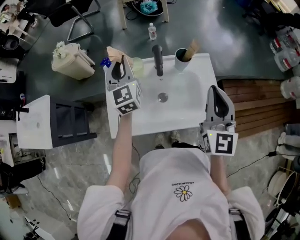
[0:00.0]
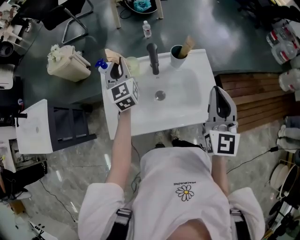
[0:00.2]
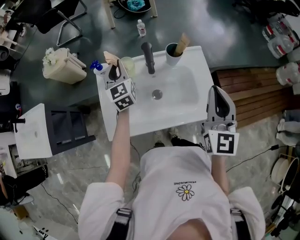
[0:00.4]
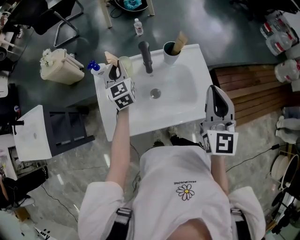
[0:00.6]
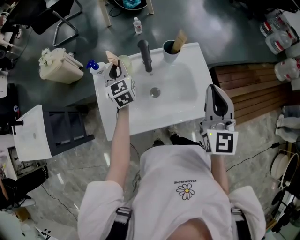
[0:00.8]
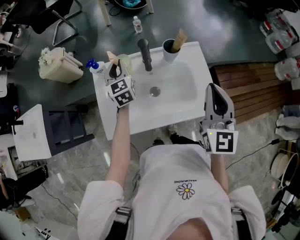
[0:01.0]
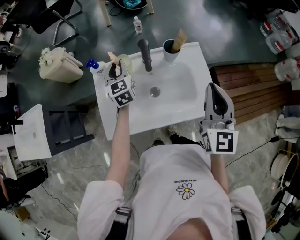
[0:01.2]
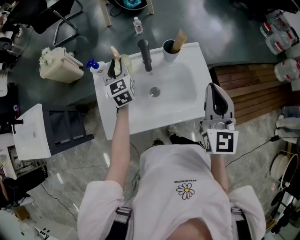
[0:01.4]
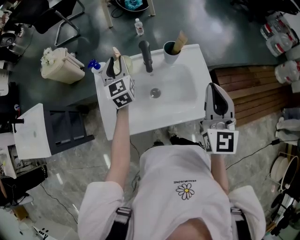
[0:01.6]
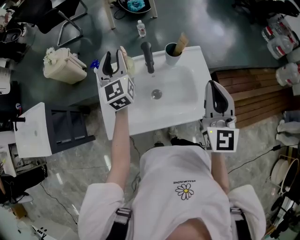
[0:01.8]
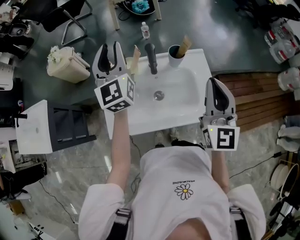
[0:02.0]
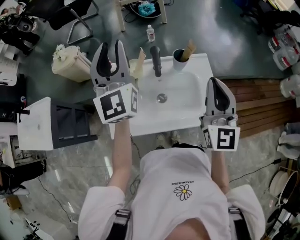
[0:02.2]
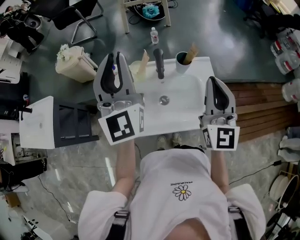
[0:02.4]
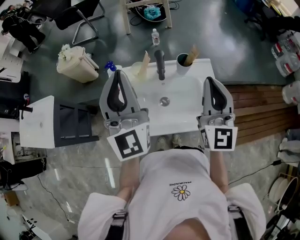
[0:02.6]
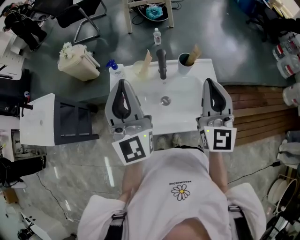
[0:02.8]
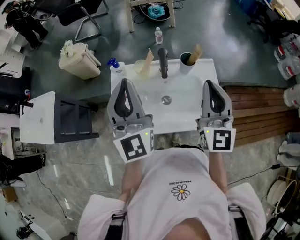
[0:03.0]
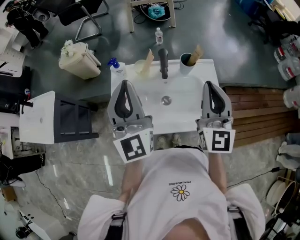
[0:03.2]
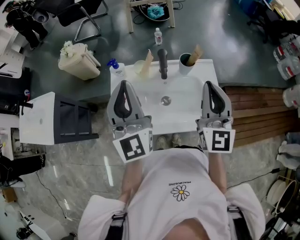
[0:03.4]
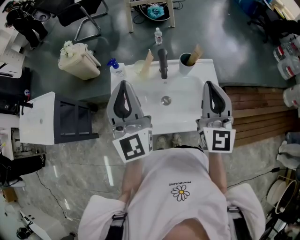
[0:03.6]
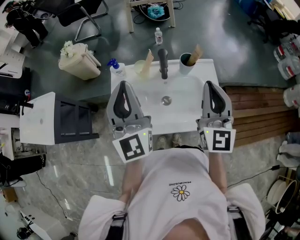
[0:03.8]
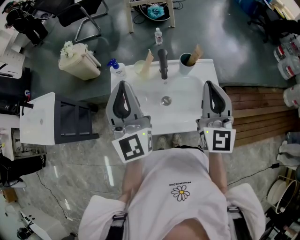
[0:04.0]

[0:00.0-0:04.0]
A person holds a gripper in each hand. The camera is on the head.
0:00.0 to 0:01.4: The left gripper heads downward, covering about 10 cm.
0:01.4 to 0:02.6: The right gripper travels upward by approximately 5 cm; the left gripper shifts some 30 cm upward and backward, angles its fingers upward, by approximately 30 degrees, and closes.
0:02.6 to 0:04.0: The grippers make only small movements.

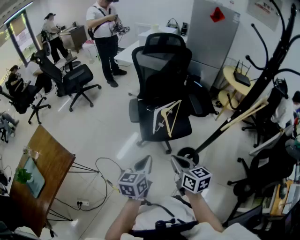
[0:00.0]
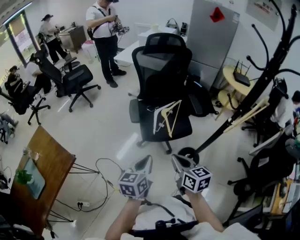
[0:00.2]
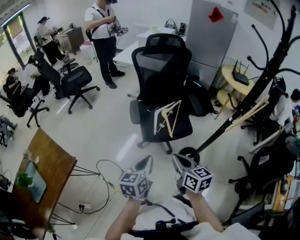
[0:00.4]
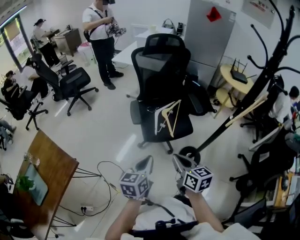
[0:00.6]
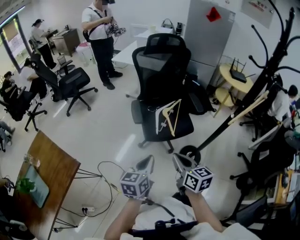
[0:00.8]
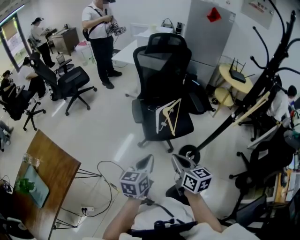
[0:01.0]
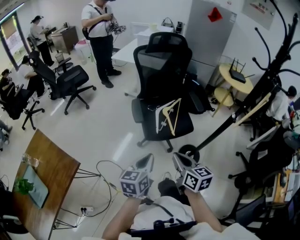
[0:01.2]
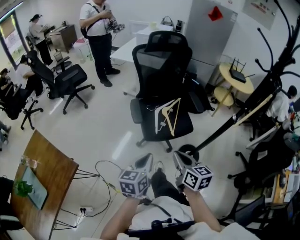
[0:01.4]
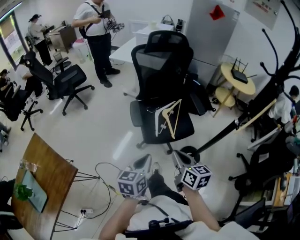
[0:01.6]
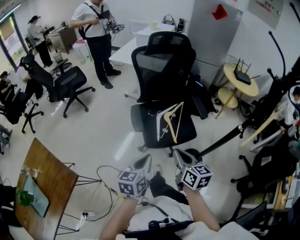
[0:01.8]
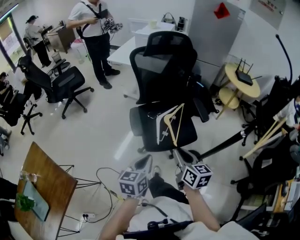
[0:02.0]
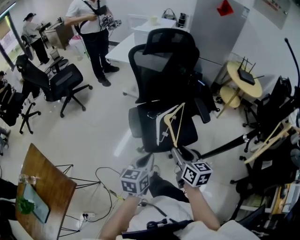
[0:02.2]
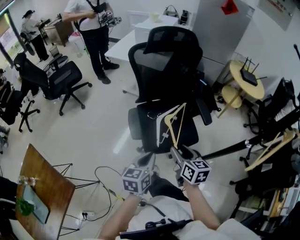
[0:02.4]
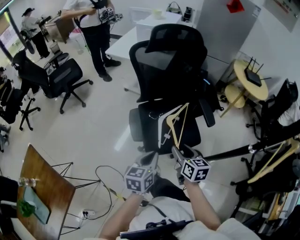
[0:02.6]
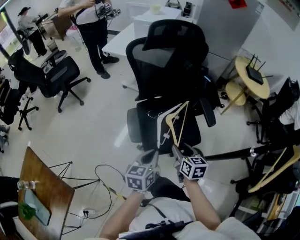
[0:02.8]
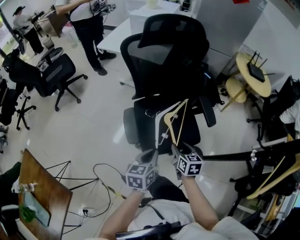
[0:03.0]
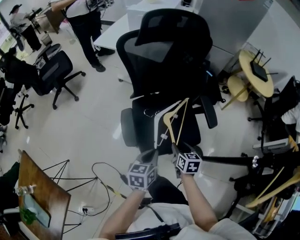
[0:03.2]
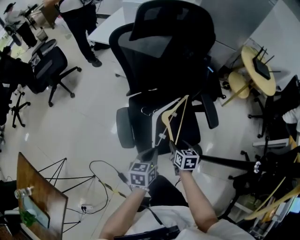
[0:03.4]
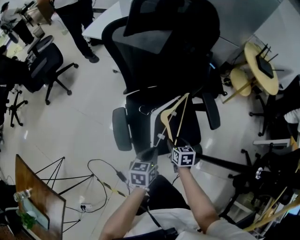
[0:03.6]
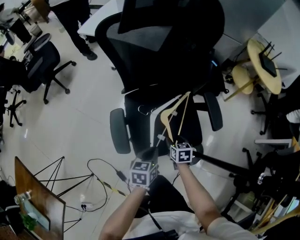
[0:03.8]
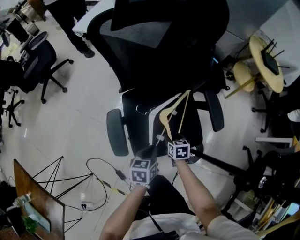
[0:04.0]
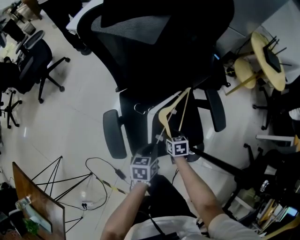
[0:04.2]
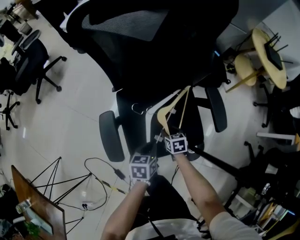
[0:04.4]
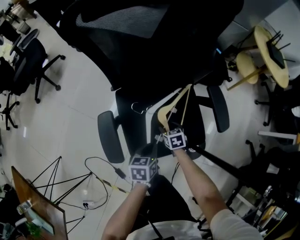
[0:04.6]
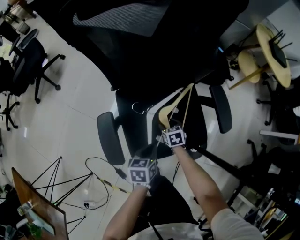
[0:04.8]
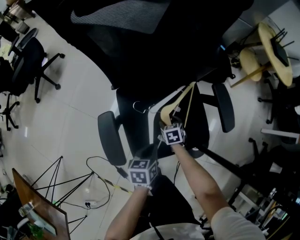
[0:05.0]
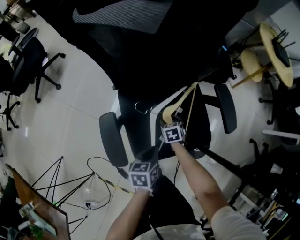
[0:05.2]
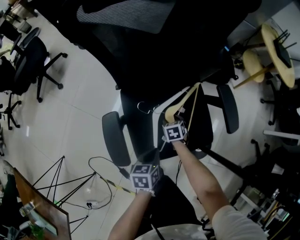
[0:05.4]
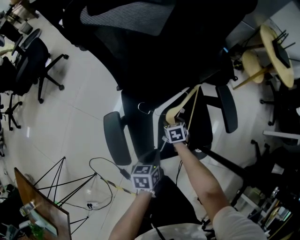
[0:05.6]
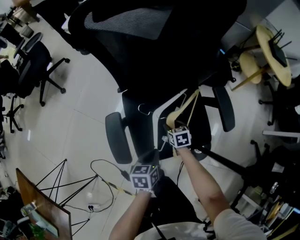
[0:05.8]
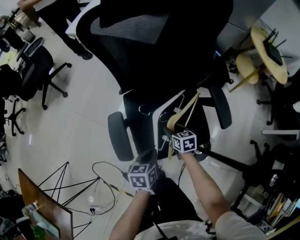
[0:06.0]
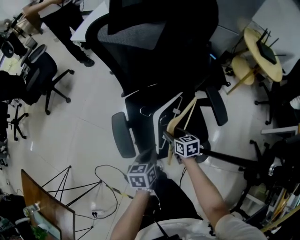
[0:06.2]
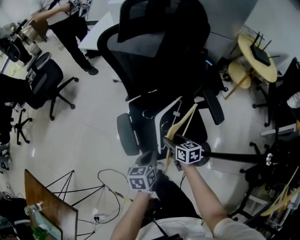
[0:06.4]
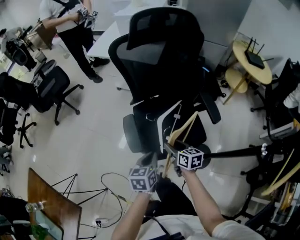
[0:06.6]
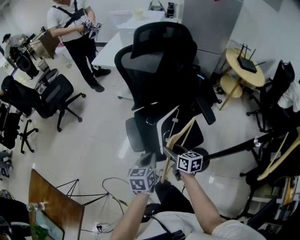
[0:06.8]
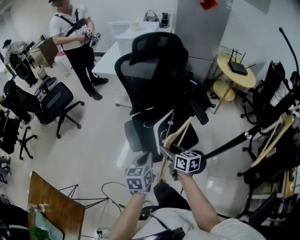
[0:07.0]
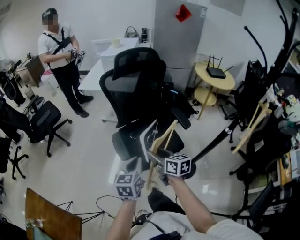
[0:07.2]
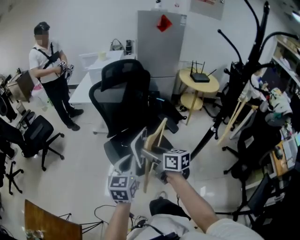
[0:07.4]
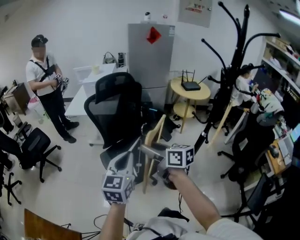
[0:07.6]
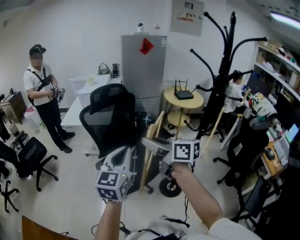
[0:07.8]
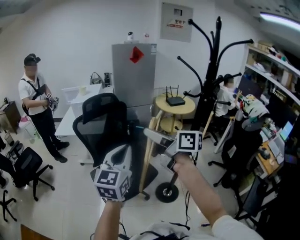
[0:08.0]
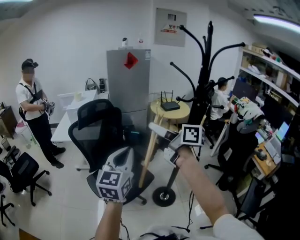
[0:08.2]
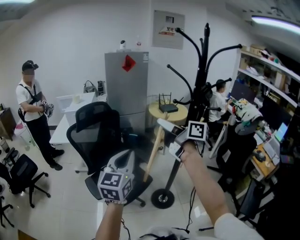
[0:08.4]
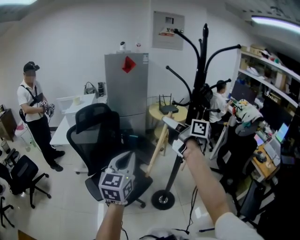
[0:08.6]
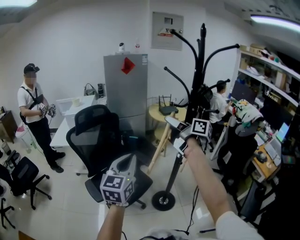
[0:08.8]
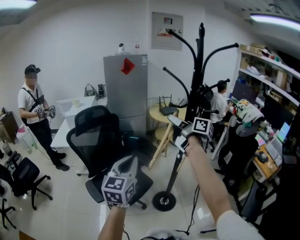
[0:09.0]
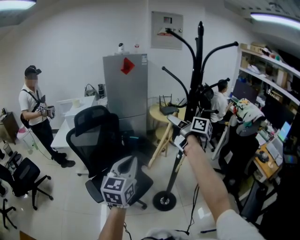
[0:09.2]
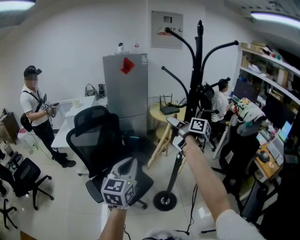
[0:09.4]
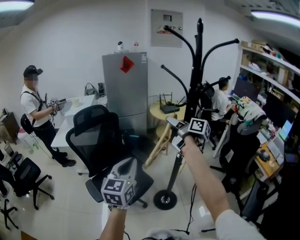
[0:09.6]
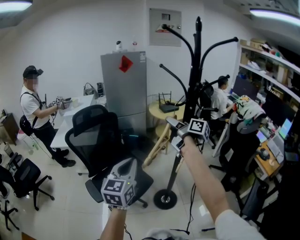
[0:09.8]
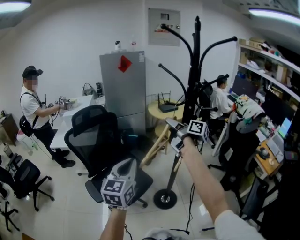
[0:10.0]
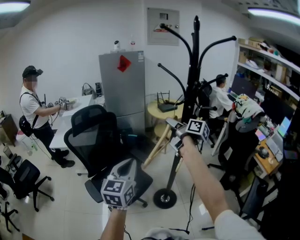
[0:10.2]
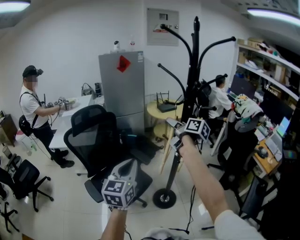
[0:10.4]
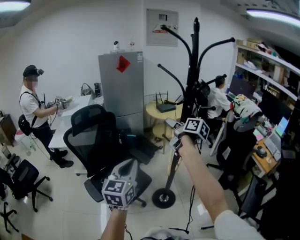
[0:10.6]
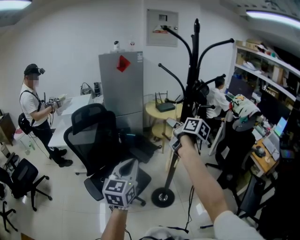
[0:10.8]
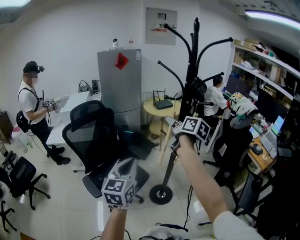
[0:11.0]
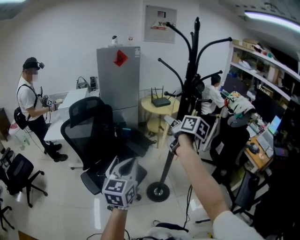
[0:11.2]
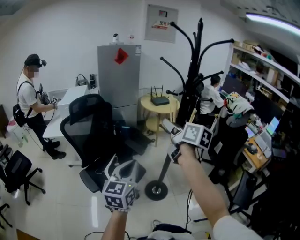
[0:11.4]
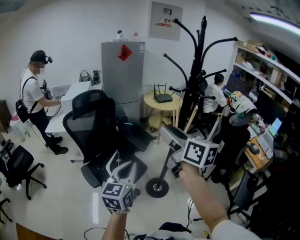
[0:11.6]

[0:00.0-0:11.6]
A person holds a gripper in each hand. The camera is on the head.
0:00.0 to 0:01.4: The grippers both shift to the left by approximately 5 cm.
0:01.4 to 0:02.8: The right gripper heads forward and downward, covering some 30 cm, and opens up, while the left gripper shifts roughly 25 cm forward.
0:02.8 to 0:04.4: The grippers both shift downward and forward by roughly 35 cm. The left gripper changes its angle by approximately 20 degrees. Meanwhile the right gripper swivels approximately 30 degrees.
0:05.8 to 0:07.2: The grippers both shift upward and backward by roughly 40 cm. The left gripper turns by approximately 30 degrees. Meanwhile the right gripper tips its fingers upward by some 40 degrees.
0:07.2 to 0:08.8: Both grippers travel together upward and to the right, roughly 40 cm. The left gripper turns by roughly 40 degrees. Meanwhile the right gripper turns by about 40 degrees.
0:08.8 to 0:10.2: The right gripper shifts roughly 5 cm downward.
0:10.2 to 0:11.6: The right gripper goes about 20 cm backward, and changes its angle by approximately 30 degrees. Meanwhile the left gripper shifts some 10 cm backward.

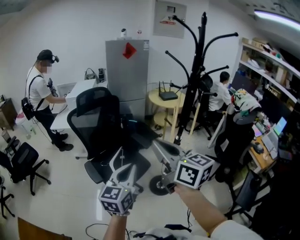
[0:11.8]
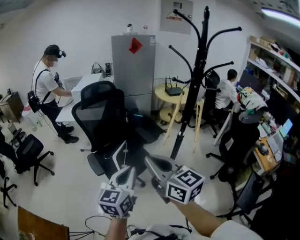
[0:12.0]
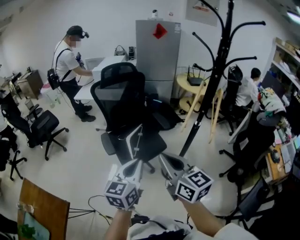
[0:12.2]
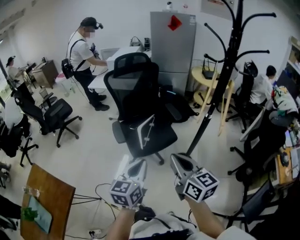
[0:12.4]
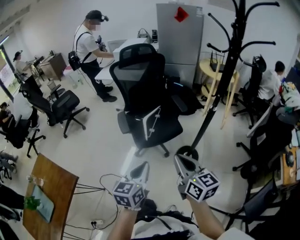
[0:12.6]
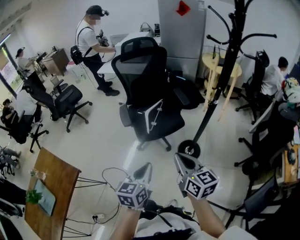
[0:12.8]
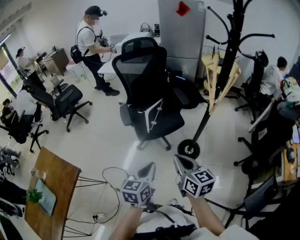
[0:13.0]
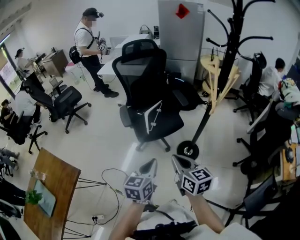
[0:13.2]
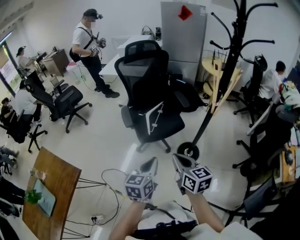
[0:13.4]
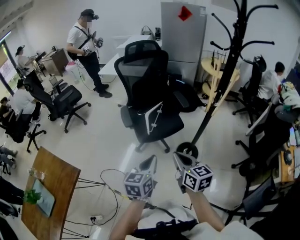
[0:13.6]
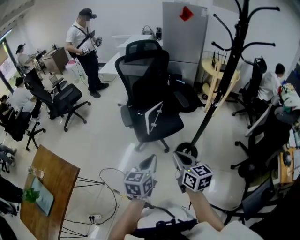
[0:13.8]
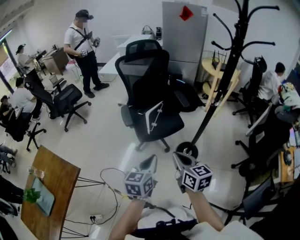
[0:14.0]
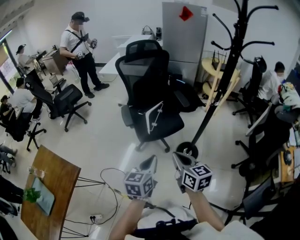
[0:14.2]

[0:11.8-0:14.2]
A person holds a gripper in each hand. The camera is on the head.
0:11.8 to 0:13.0: The right gripper is displaced downward and backward by approximately 30 cm, and swivels about 20 degrees, while the left gripper travels backward and downward by roughly 25 cm, and changes its angle by approximately 30 degrees.
0:13.0 to 0:14.2: The grippers stay close to where they were, moving slightly.

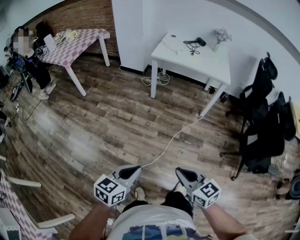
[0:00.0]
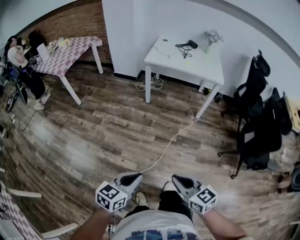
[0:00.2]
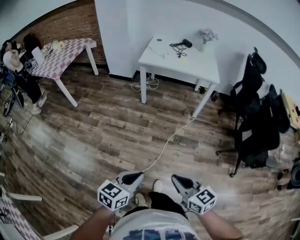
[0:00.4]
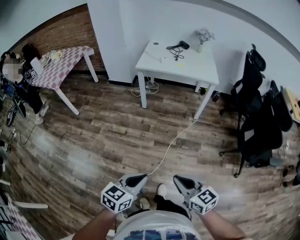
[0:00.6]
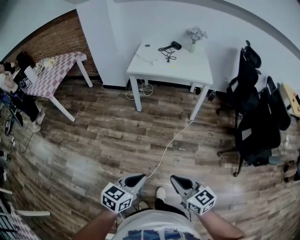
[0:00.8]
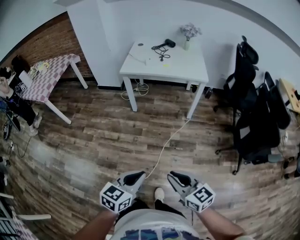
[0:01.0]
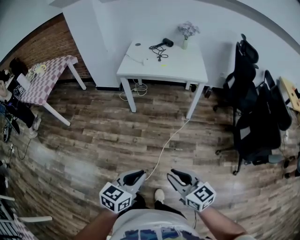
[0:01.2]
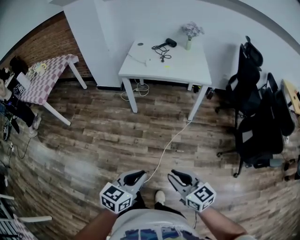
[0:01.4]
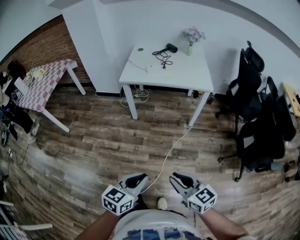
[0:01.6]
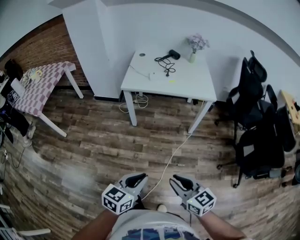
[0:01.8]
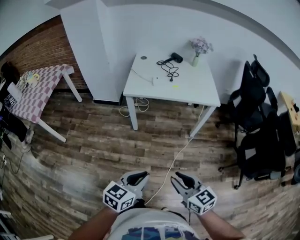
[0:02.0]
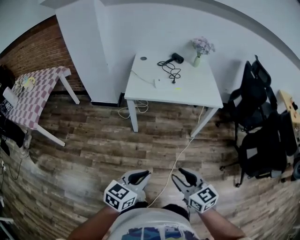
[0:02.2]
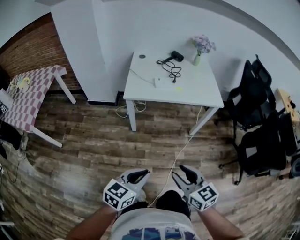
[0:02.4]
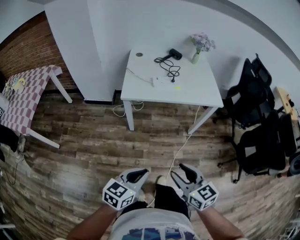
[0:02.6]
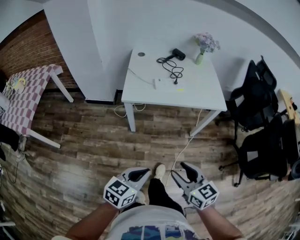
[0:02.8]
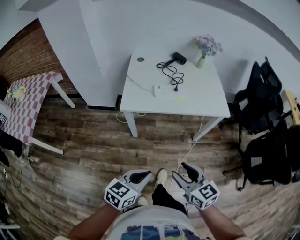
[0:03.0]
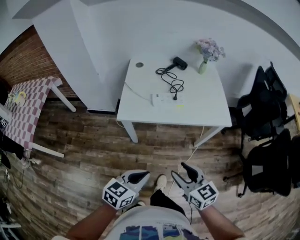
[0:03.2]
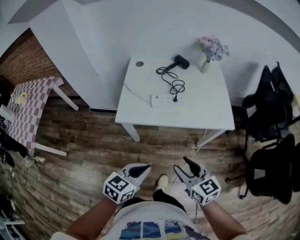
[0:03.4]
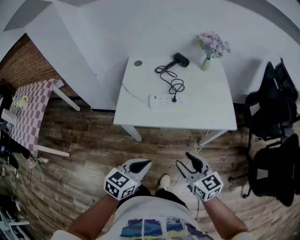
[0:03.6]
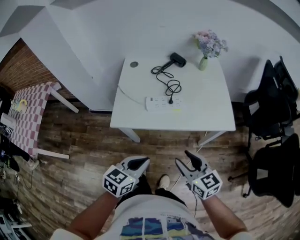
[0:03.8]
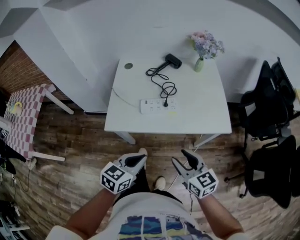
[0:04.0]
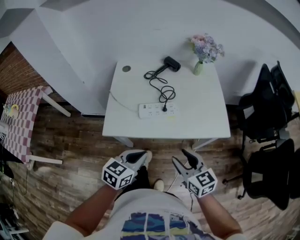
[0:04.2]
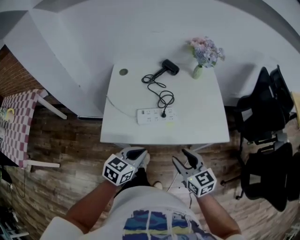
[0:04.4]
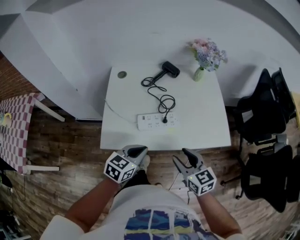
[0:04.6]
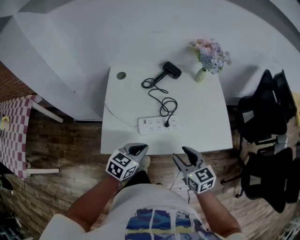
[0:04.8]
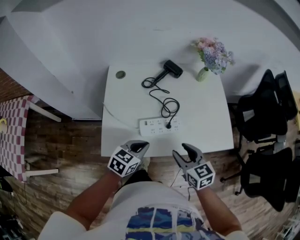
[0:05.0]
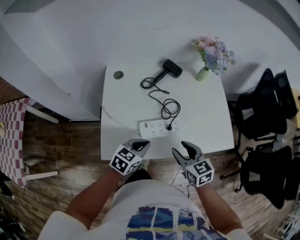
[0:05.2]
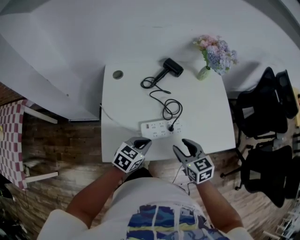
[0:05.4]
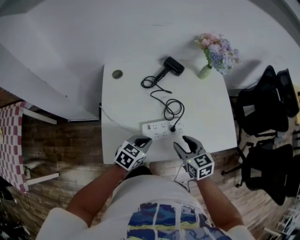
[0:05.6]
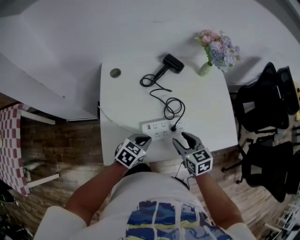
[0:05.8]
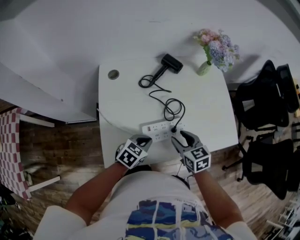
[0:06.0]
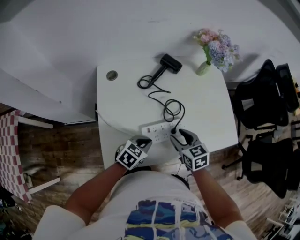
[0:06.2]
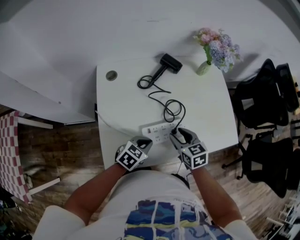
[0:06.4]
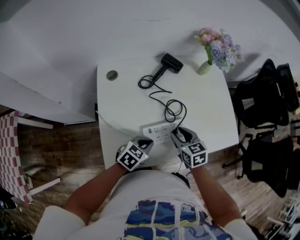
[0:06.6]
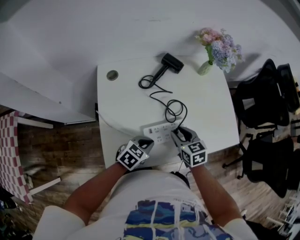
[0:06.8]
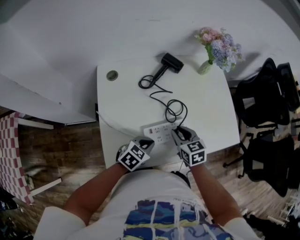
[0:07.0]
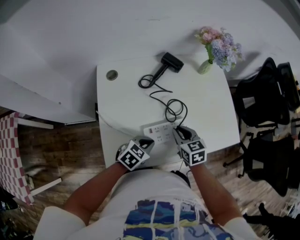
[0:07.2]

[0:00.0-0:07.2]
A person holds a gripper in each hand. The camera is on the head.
0:00.0 to 0:01.4: Both grippers travel together forward and to the right, roughly 20 cm.
0:01.4 to 0:02.8: The two grippers go approximately 40 cm forward and to the left. The right gripper opens up.
0:02.8 to 0:04.4: Both grippers are carried forward, approximately 40 cm.
0:04.4 to 0:05.8: Both grippers travel together forward, downward and to the left, about 25 cm.
0:05.8 to 0:07.2: The right gripper ends up some 5 cm from where it was, and closes.
